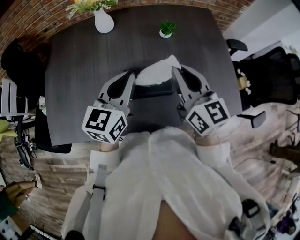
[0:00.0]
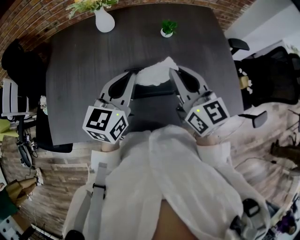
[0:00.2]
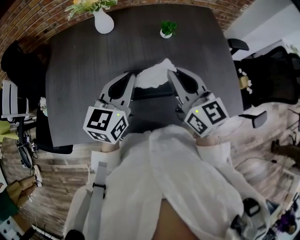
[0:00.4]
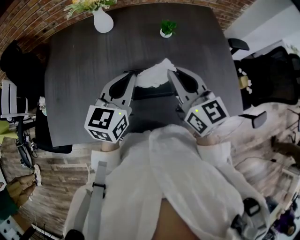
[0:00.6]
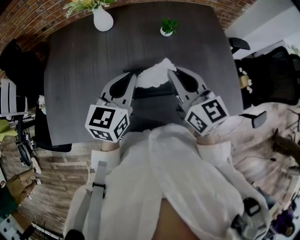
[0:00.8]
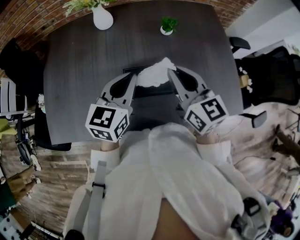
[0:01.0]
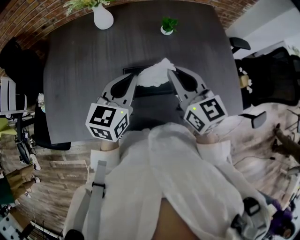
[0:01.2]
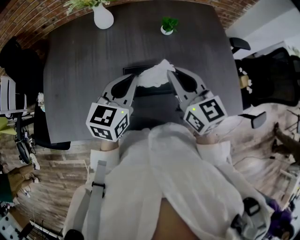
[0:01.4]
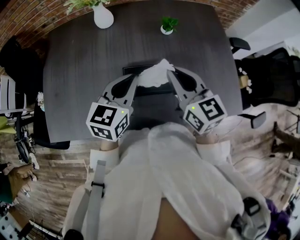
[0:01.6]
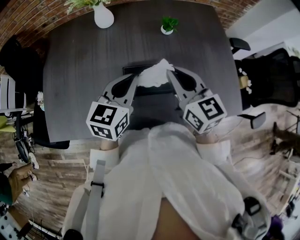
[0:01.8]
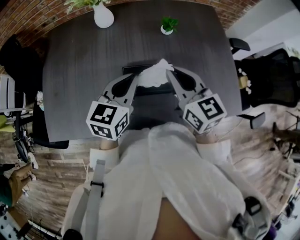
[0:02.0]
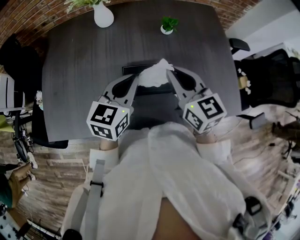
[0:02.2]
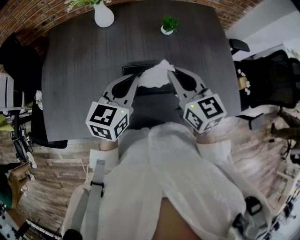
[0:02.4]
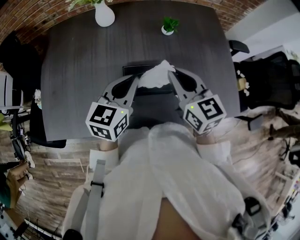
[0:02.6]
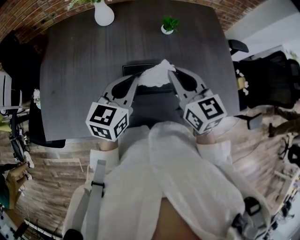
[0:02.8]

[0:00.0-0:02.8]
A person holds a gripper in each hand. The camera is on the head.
0:00.0 to 0:02.8: There are only small adjustments of the grippers.

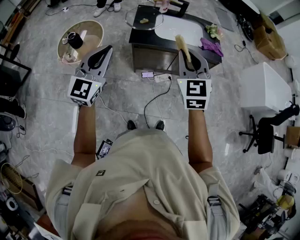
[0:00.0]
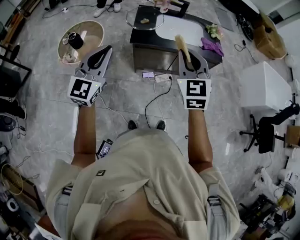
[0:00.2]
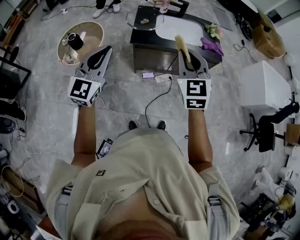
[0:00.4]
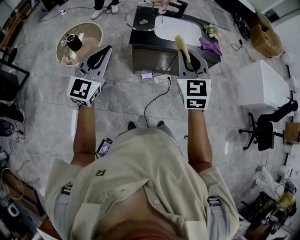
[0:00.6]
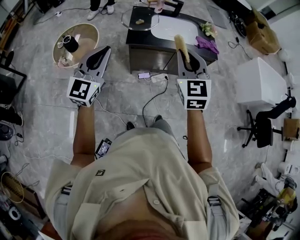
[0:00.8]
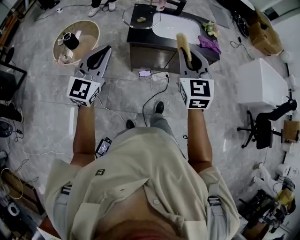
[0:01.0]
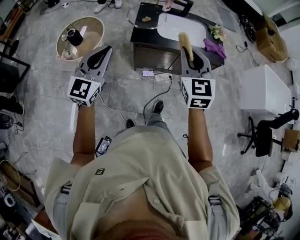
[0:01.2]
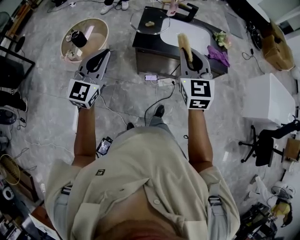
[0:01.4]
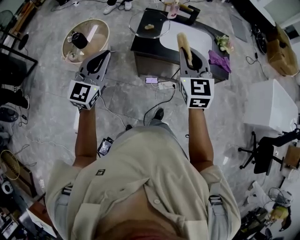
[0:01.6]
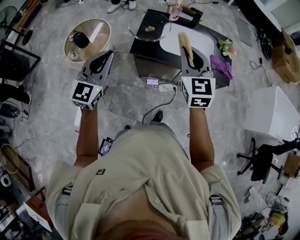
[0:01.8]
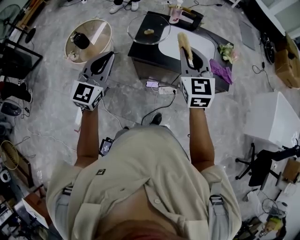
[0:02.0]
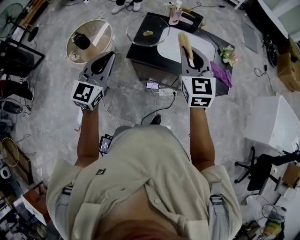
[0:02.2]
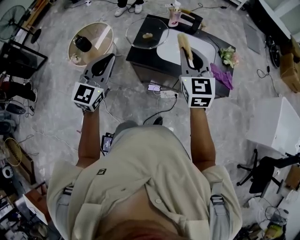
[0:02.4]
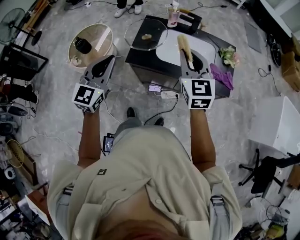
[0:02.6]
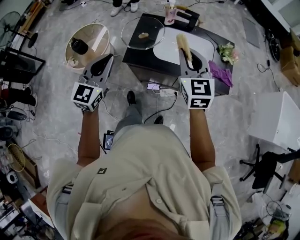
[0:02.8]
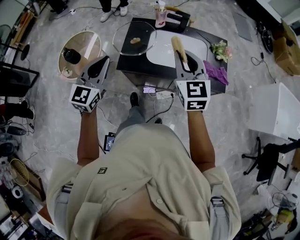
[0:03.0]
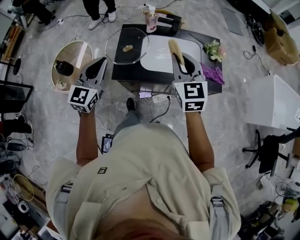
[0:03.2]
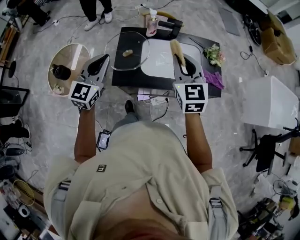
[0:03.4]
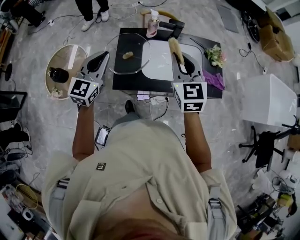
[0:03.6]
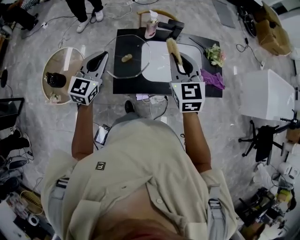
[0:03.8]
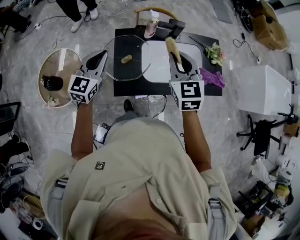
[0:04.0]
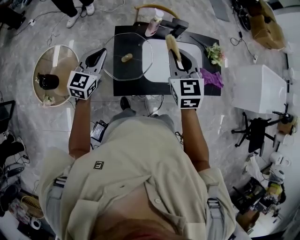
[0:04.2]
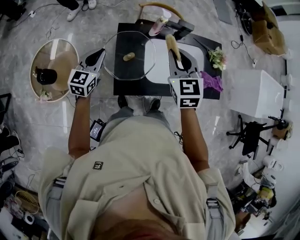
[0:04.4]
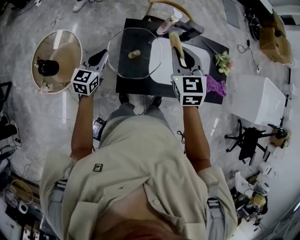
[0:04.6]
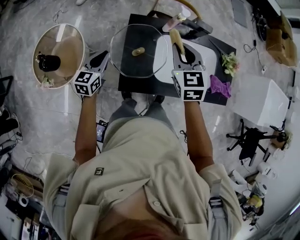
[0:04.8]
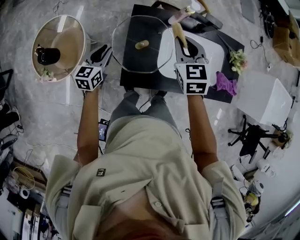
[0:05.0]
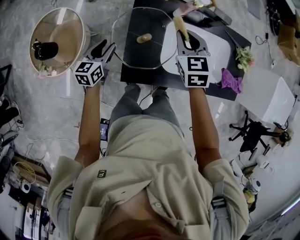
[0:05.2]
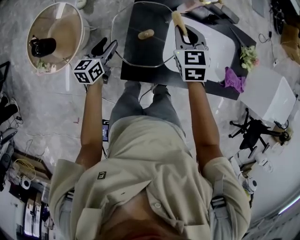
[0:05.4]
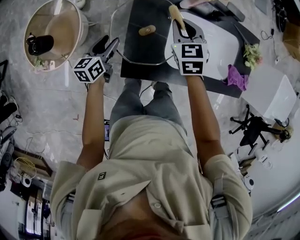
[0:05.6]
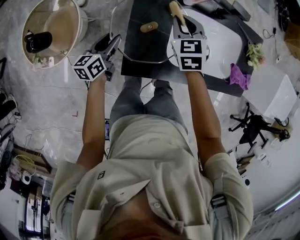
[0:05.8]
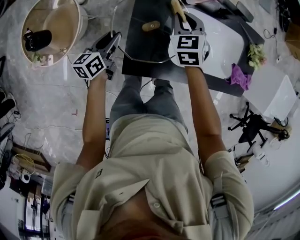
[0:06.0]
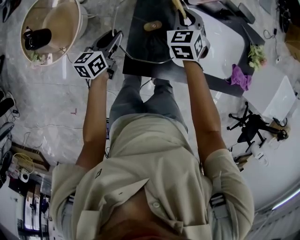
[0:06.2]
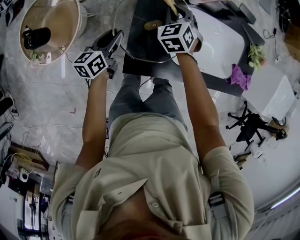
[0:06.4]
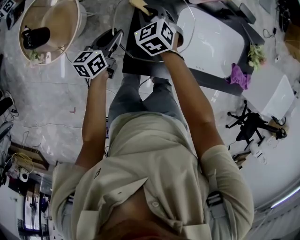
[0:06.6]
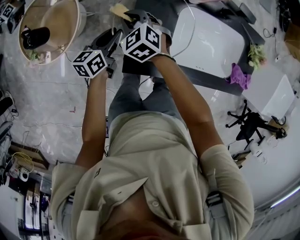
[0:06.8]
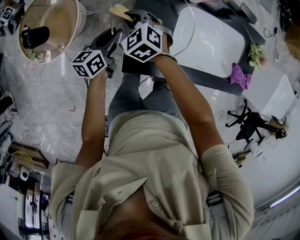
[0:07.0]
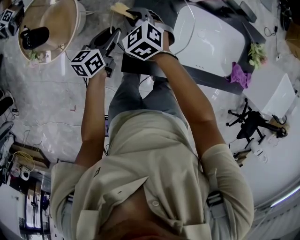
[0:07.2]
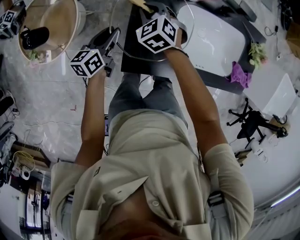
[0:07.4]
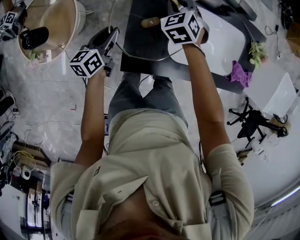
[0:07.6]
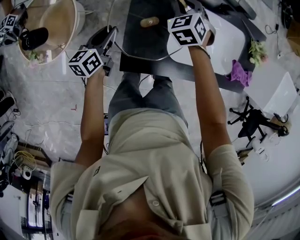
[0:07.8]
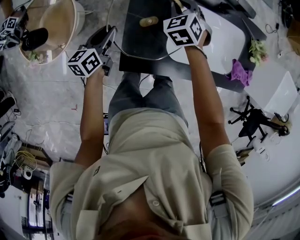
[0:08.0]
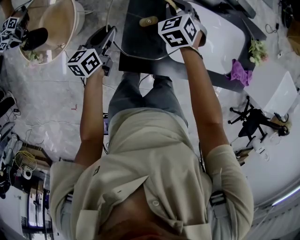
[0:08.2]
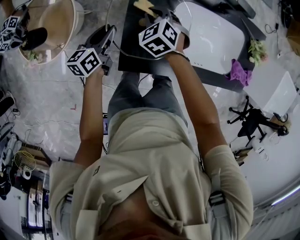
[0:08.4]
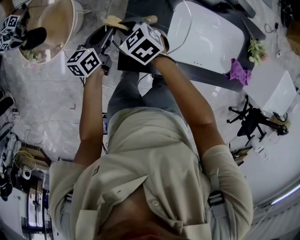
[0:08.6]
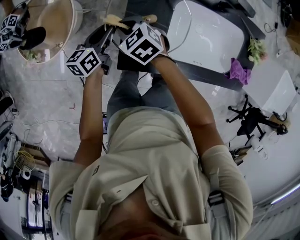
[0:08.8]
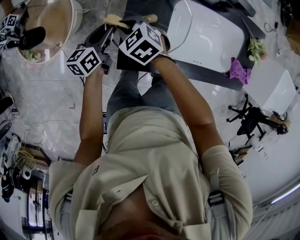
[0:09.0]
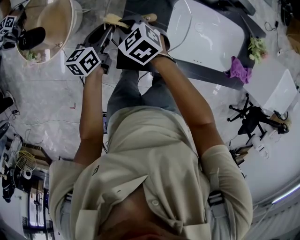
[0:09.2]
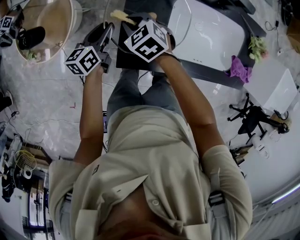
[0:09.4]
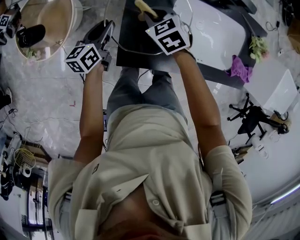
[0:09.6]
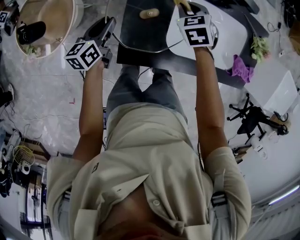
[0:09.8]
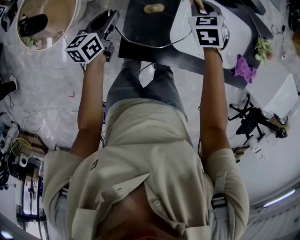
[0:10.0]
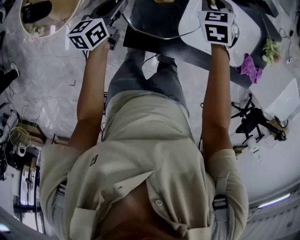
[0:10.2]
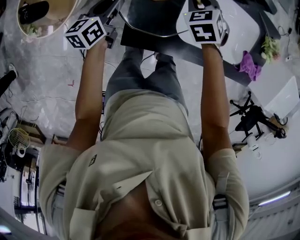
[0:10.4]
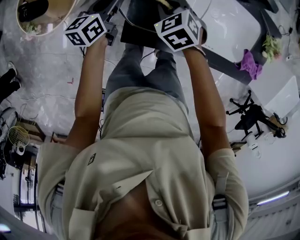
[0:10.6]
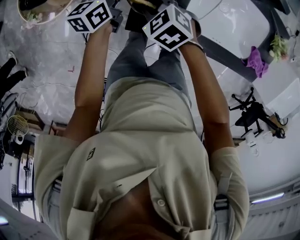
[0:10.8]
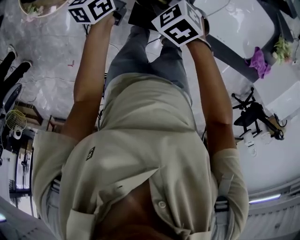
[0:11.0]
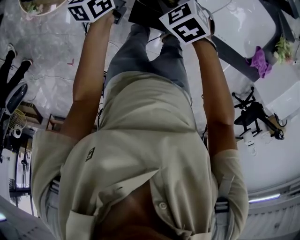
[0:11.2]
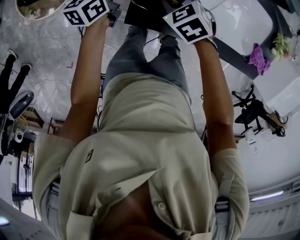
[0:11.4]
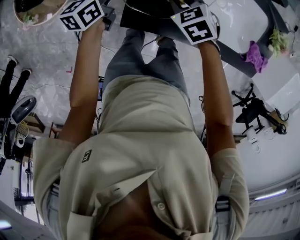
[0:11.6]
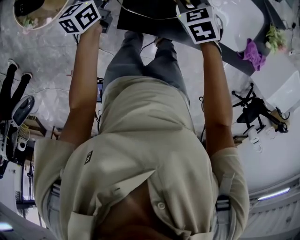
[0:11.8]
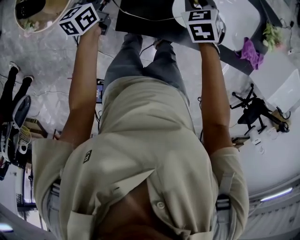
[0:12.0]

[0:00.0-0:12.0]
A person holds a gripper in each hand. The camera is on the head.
0:00.0 to 0:01.6: Both grippers move forward, roughly 10 cm.
0:01.6 to 0:03.0: The two grippers go some 20 cm forward and to the right.
0:03.0 to 0:04.4: The left gripper heads forward, downward and to the left, covering approximately 35 cm, and turns by approximately 20 degrees. The right gripper heads forward and to the left, covering some 25 cm.
0:04.4 to 0:06.0: The grippers both shift downward by about 25 cm. The right gripper turns by roughly 20 degrees. Meanwhile the left gripper rotates around the line of its fingers by about 40 degrees, counterclockwise from behind, and opens up.
0:06.0 to 0:07.6: The right gripper travels to the left and back again, approximately 20 cm each way.
0:07.6 to 0:09.0: The right gripper shifts by some 20 cm, and rotates about 30 degrees.
0:09.0 to 0:10.4: The right gripper moves approximately 20 cm, and turns by roughly 30 degrees.

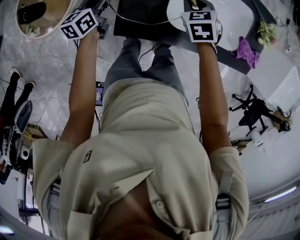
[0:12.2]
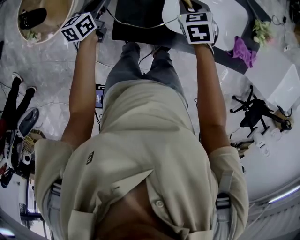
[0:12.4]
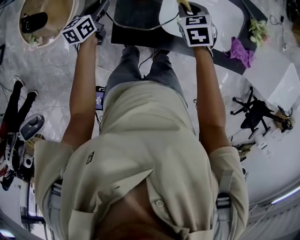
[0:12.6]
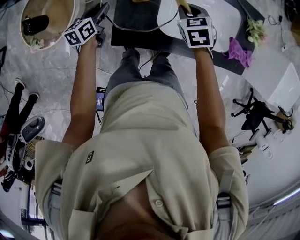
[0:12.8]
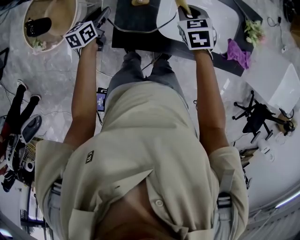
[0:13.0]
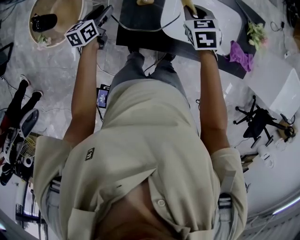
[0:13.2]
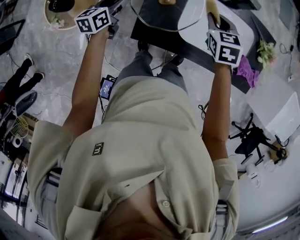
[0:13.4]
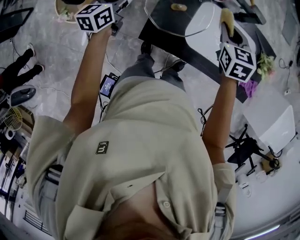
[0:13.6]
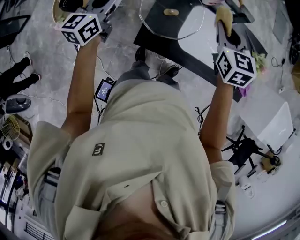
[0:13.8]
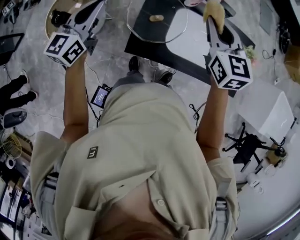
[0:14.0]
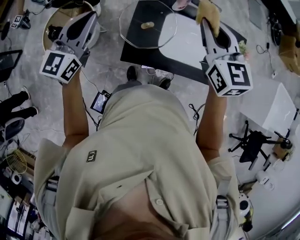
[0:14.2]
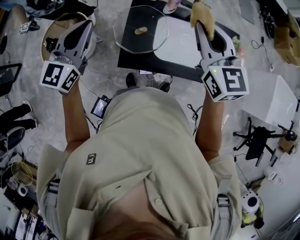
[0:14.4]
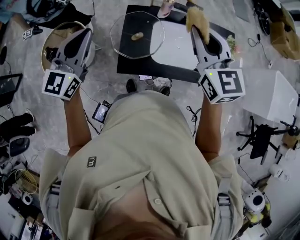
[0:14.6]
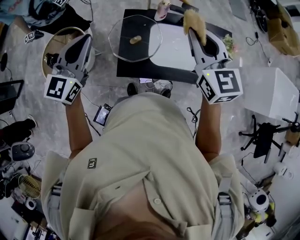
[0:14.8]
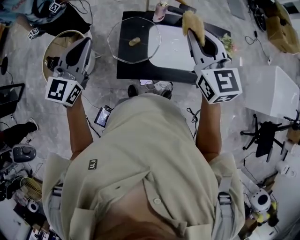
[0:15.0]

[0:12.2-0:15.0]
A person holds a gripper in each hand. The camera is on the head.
0:12.2 to 0:13.6: Both grippers travel together upward, approximately 15 cm.
0:13.6 to 0:15.0: The left gripper shifts about 25 cm upward, swivels about 40 degrees, and closes its fingers, while the right gripper shifts approximately 25 cm upward and backward, and angles its fingers upward, by approximately 30 degrees.

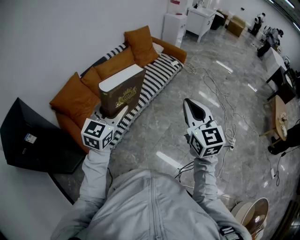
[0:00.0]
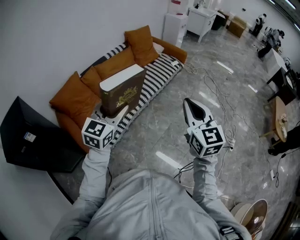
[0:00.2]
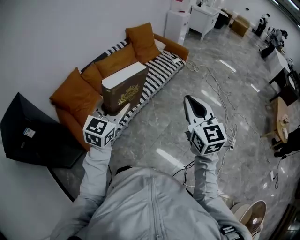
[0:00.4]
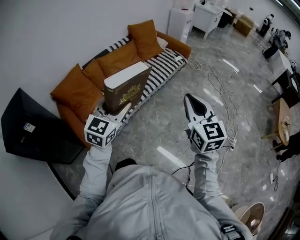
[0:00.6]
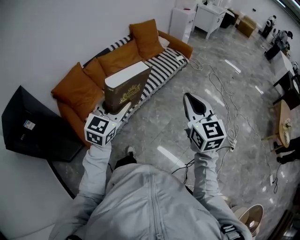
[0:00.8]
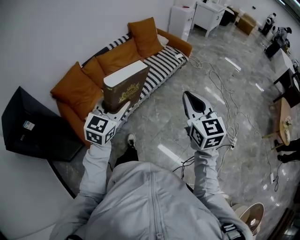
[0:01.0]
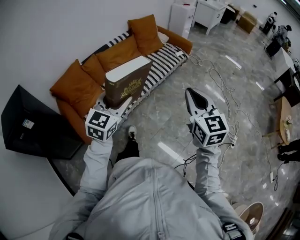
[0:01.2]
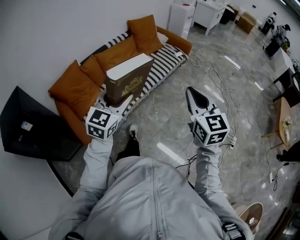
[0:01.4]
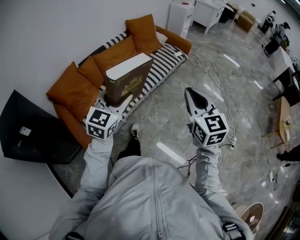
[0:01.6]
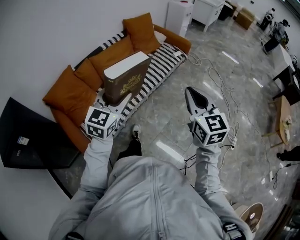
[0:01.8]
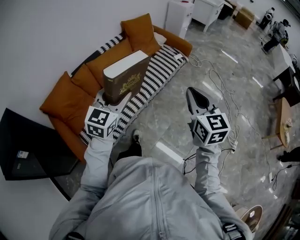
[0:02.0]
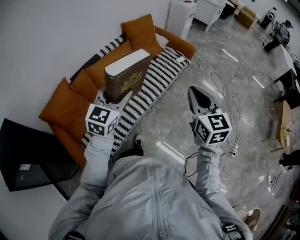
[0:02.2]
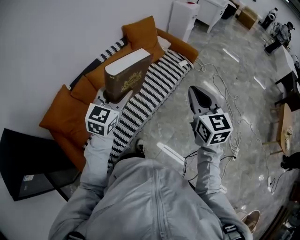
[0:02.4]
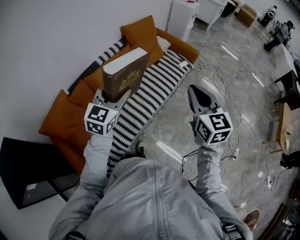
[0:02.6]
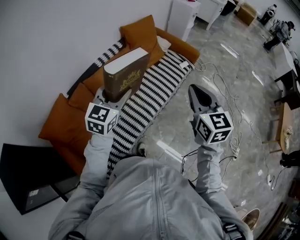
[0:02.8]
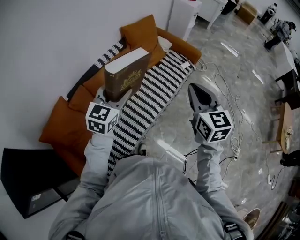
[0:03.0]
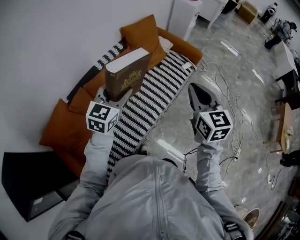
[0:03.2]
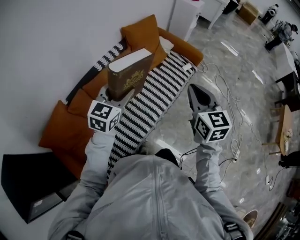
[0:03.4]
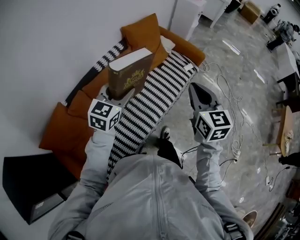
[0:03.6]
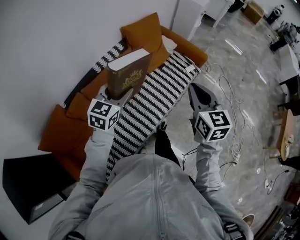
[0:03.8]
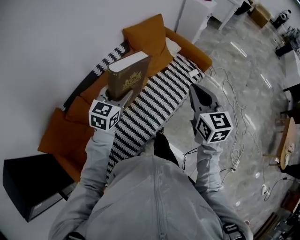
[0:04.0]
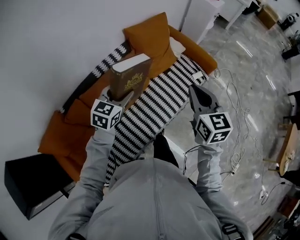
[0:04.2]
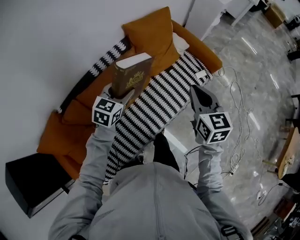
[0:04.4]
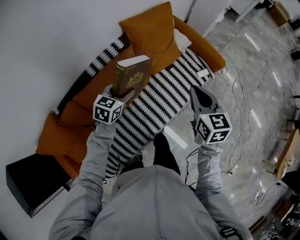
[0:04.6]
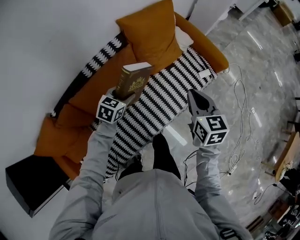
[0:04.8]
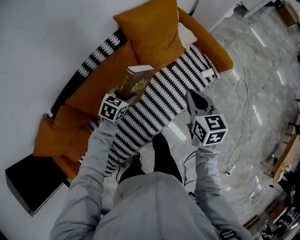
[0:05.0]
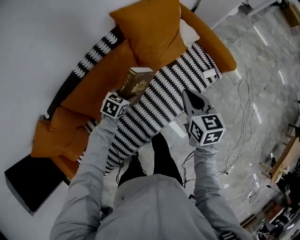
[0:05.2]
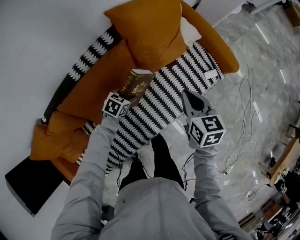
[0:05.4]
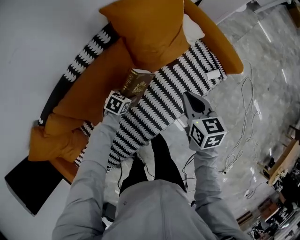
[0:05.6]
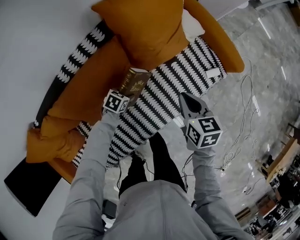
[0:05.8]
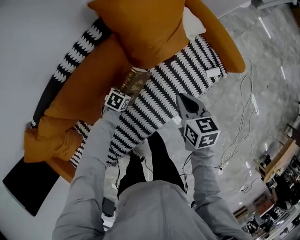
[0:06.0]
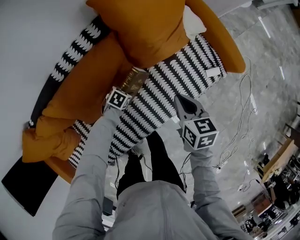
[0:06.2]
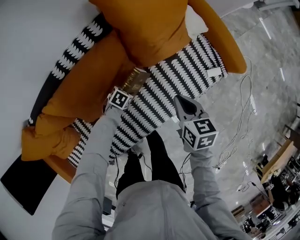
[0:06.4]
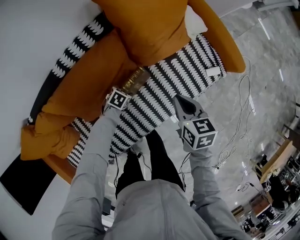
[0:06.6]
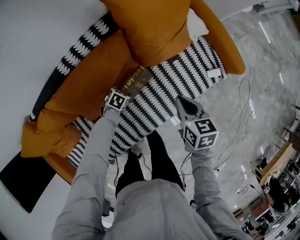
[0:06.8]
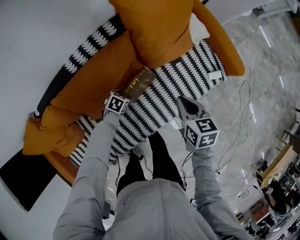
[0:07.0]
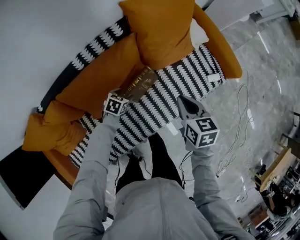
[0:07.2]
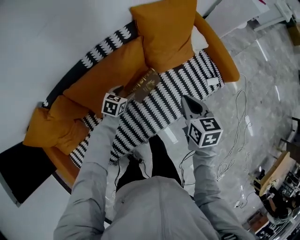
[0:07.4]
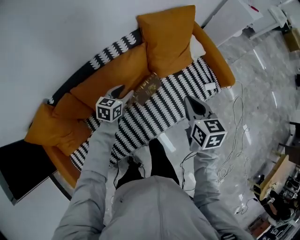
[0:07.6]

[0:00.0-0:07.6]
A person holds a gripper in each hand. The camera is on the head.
0:00.0 to 0:01.6: The left gripper goes about 10 cm forward and to the right, while the right gripper heads forward, covering approximately 5 cm.
0:01.6 to 0:03.0: Both grippers are carried forward, roughly 40 cm.
0:03.0 to 0:04.6: The grippers both shift forward and downward by approximately 35 cm. The left gripper swivels approximately 30 degrees.
0:04.6 to 0:06.0: The right gripper travels downward and forward by approximately 30 cm, and turns by approximately 20 degrees; the left gripper heads downward, covering about 35 cm, and turns by approximately 40 degrees.
0:06.0 to 0:07.6: The left gripper travels upward by roughly 25 cm, and changes its angle by roughly 40 degrees. Meanwhile the right gripper shifts roughly 20 cm upward and backward.
